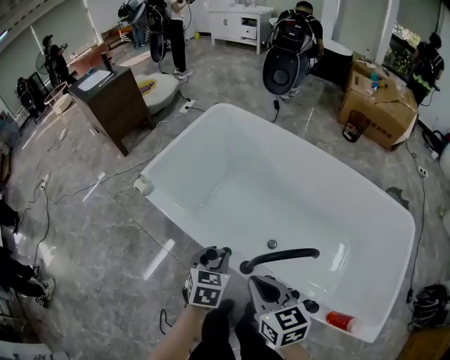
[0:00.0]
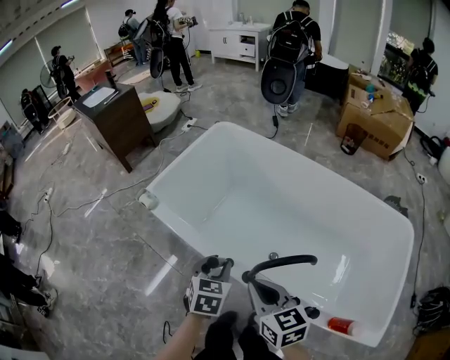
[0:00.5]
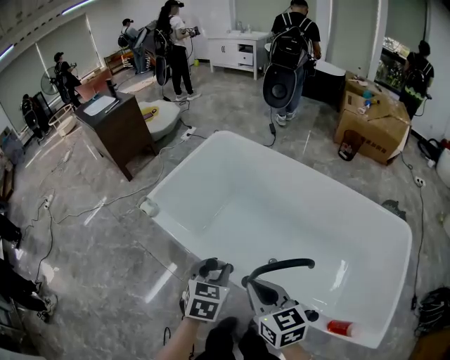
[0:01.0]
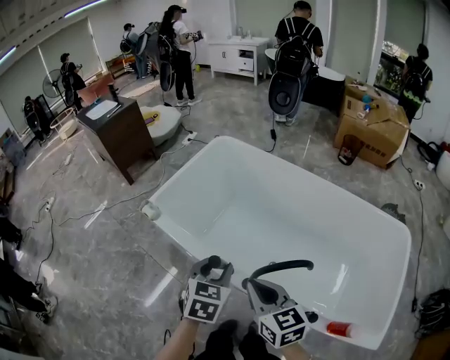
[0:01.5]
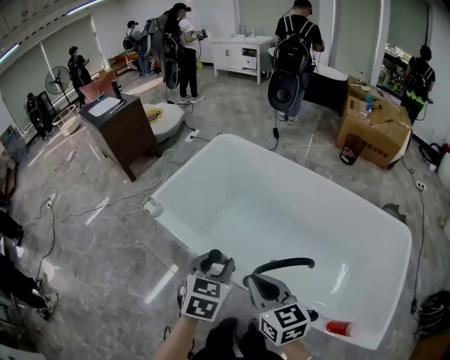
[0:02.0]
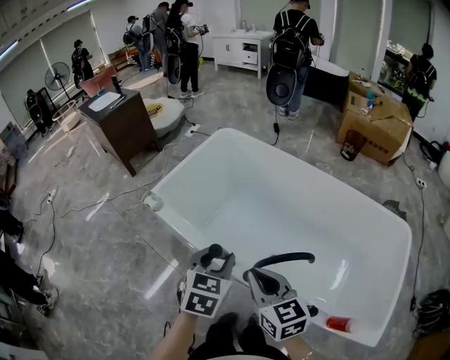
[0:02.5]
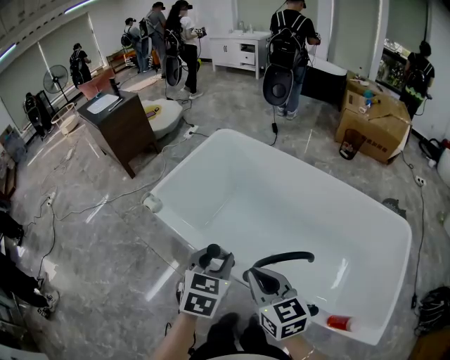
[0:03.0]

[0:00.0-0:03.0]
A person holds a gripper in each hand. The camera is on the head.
0:00.0 to 0:01.5: The right gripper goes roughly 10 cm upward. Meanwhile the left gripper shifts roughly 15 cm upward and backward.
0:01.5 to 0:03.0: The grippers move only a little.

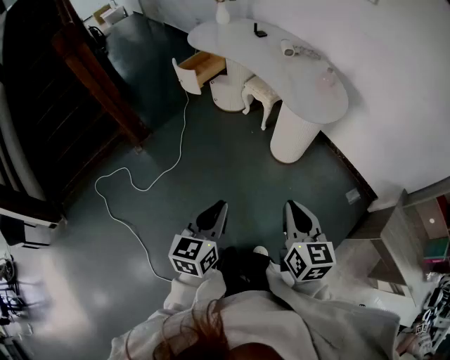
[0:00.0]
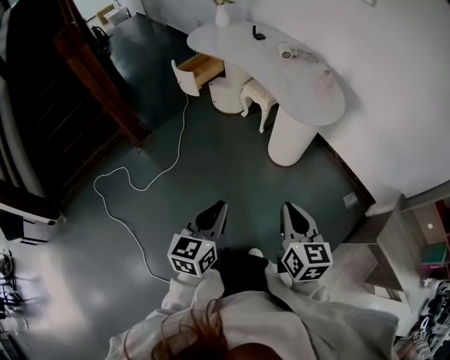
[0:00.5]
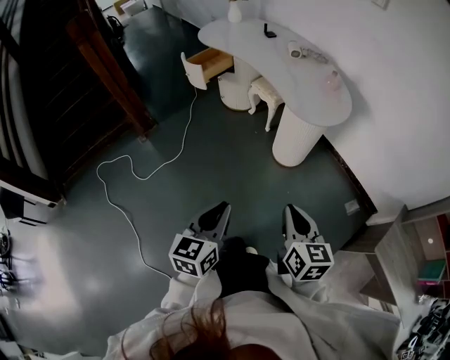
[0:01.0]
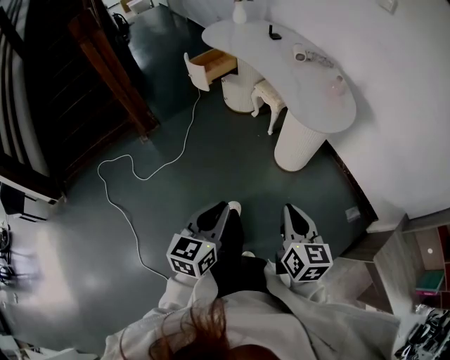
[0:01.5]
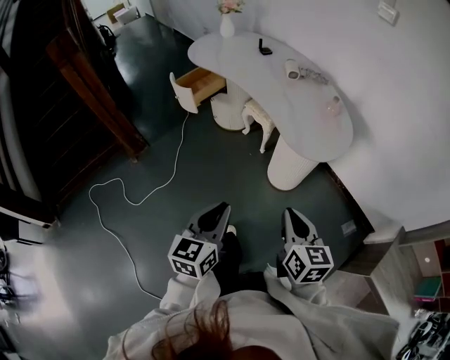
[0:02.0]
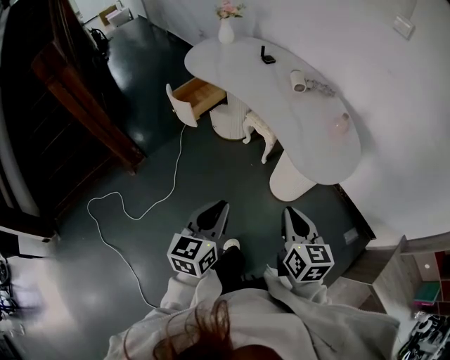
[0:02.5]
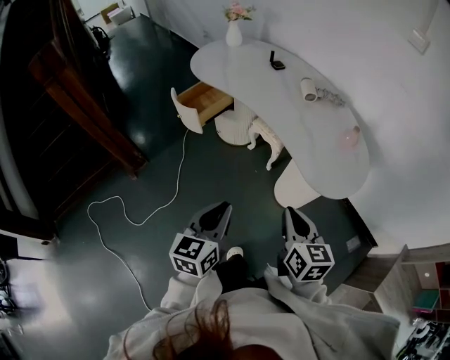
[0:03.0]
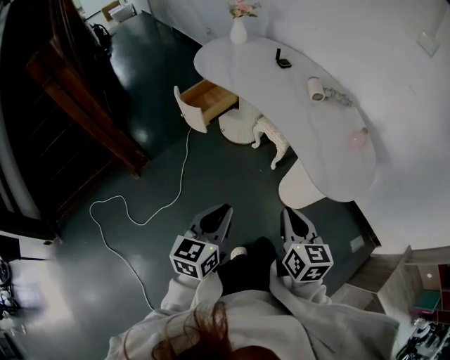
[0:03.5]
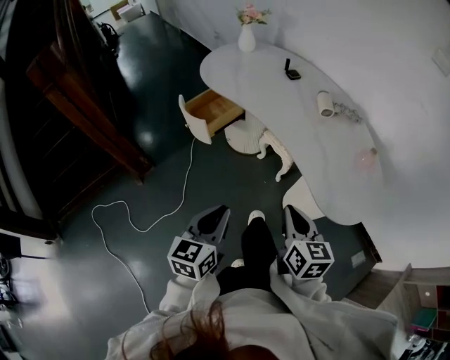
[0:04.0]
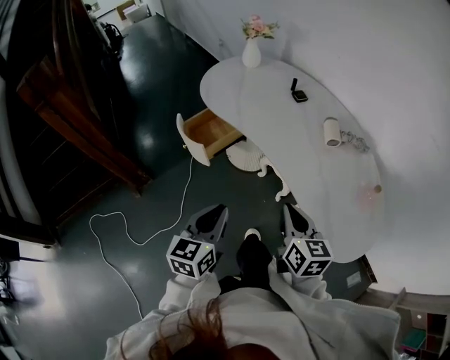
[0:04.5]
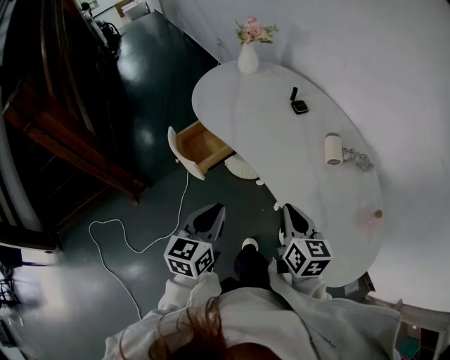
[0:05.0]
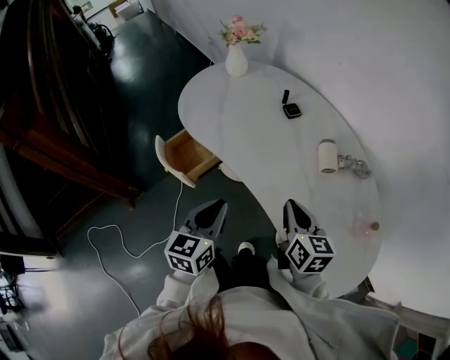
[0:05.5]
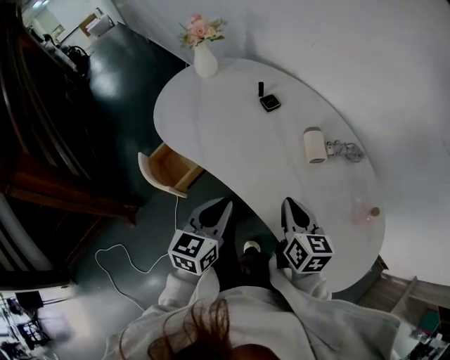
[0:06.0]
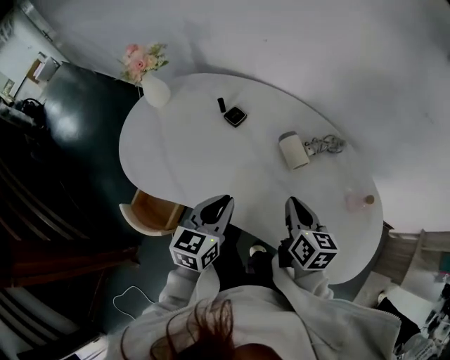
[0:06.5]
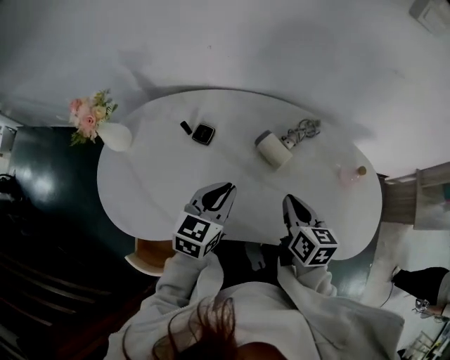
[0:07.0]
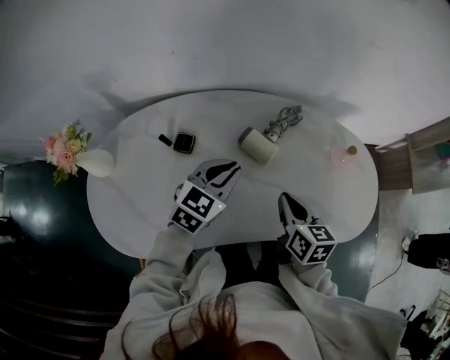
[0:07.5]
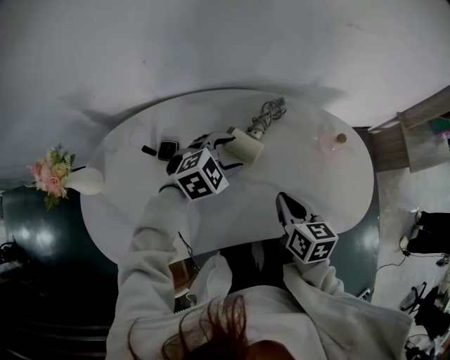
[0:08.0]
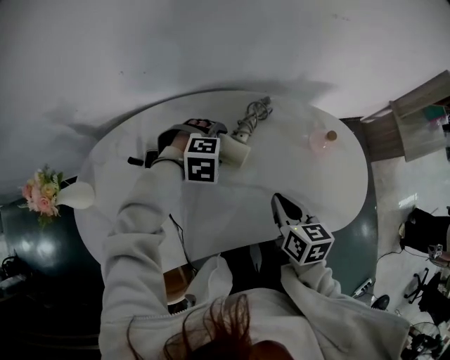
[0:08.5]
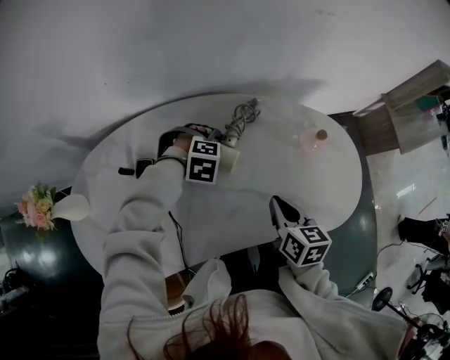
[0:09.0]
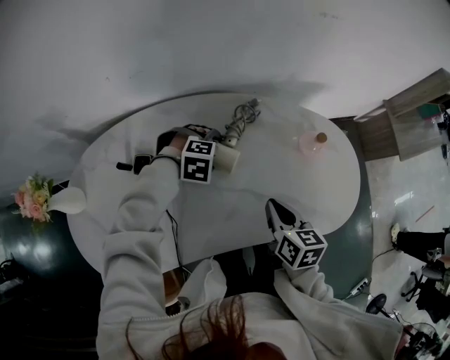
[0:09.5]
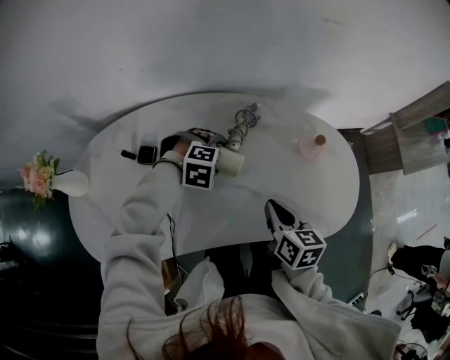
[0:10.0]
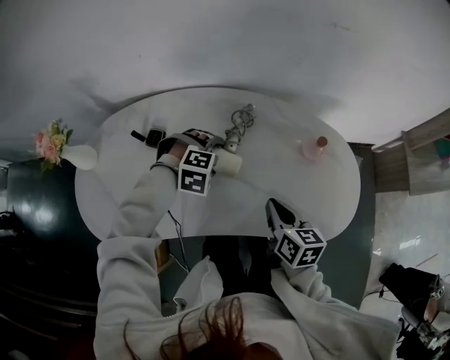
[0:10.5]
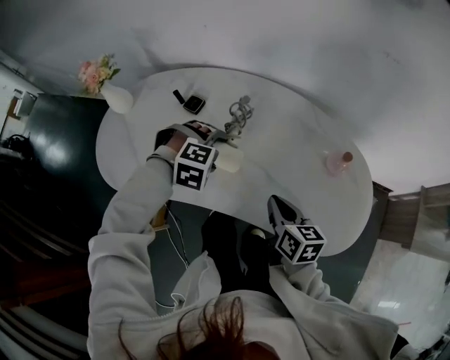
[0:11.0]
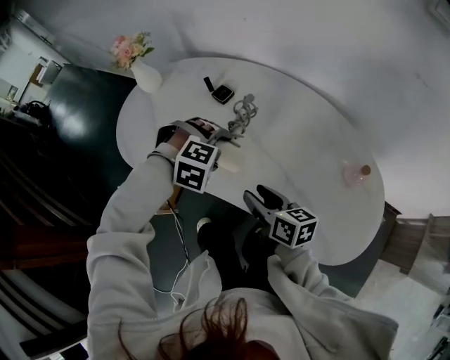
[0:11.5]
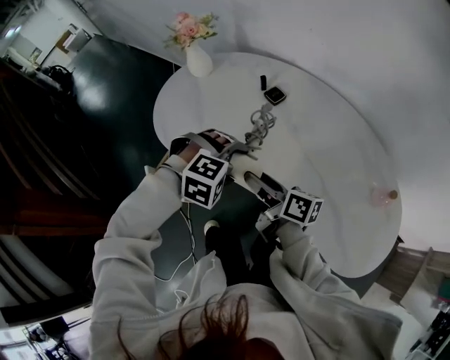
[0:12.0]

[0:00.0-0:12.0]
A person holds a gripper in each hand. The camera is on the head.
0:00.0 to 0:02.0: The left gripper heads forward and to the right, covering approximately 15 cm. The right gripper moves forward, some 15 cm.
0:02.0 to 0:04.0: Both grippers travel together forward and to the left, roughly 25 cm.
0:04.0 to 0:06.0: The two grippers go approximately 35 cm forward.
0:06.0 to 0:08.0: The left gripper ends up about 30 cm from where it was, rotates roughly 100 degrees, and opens its fingers. Meanwhile the right gripper ends up roughly 10 cm from where it was, and swivels roughly 50 degrees.
0:08.0 to 0:10.0: The left gripper travels downward by some 5 cm, and rotates roughly 40 degrees; the right gripper moves roughly 5 cm.
0:10.0 to 0:12.0: The right gripper shifts by some 25 cm, changes its angle by approximately 60 degrees, and opens up, while the left gripper shifts by roughly 30 cm, and changes its angle by approximately 40 degrees.

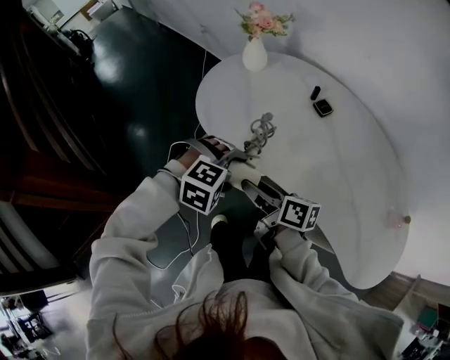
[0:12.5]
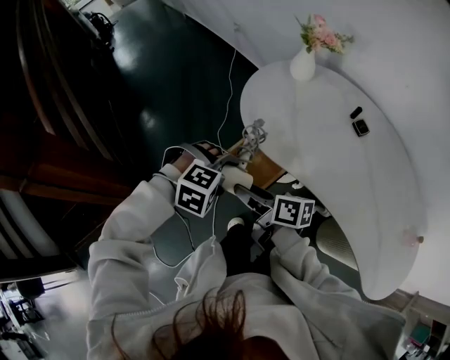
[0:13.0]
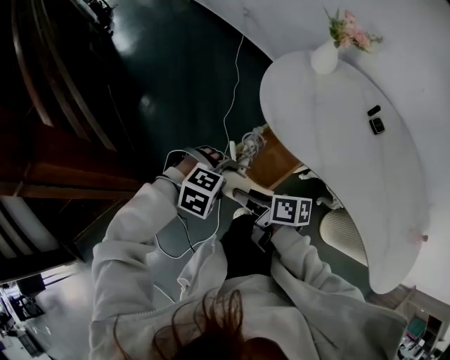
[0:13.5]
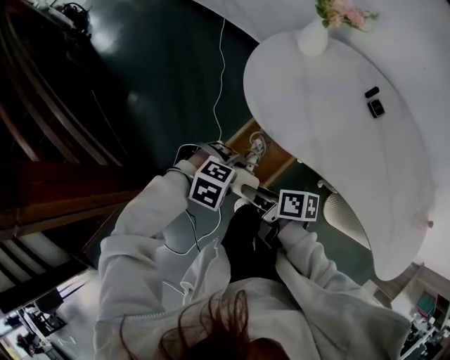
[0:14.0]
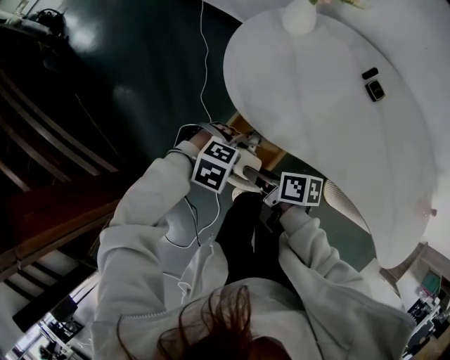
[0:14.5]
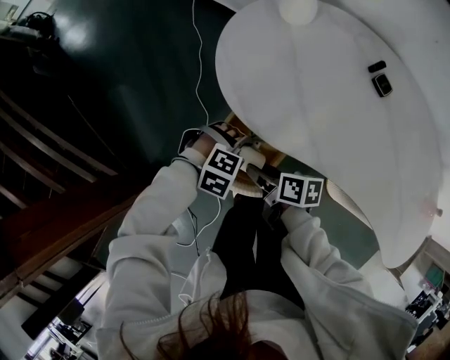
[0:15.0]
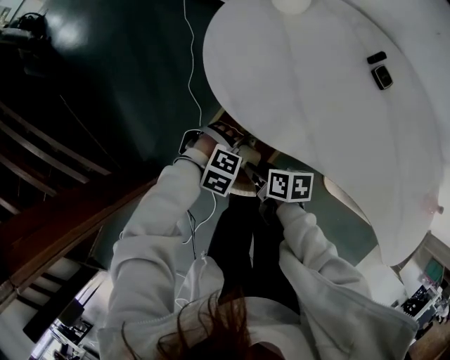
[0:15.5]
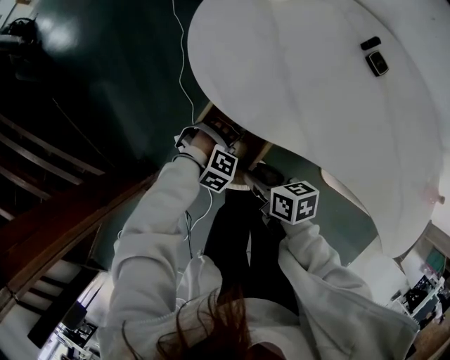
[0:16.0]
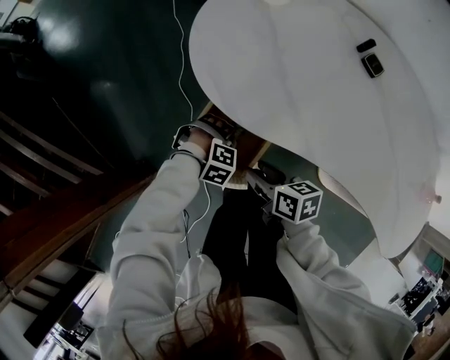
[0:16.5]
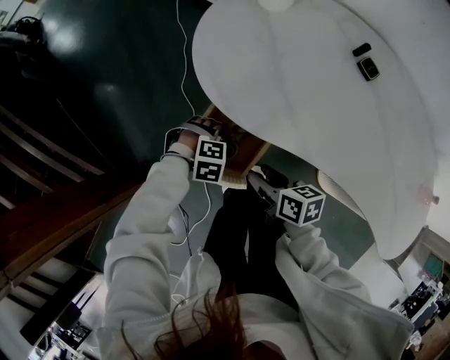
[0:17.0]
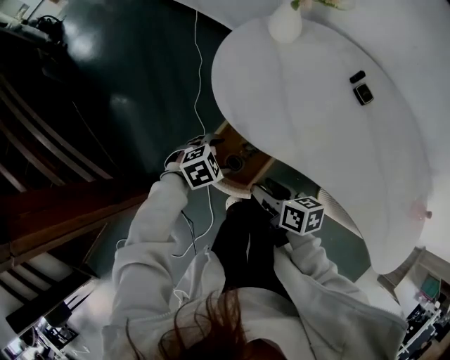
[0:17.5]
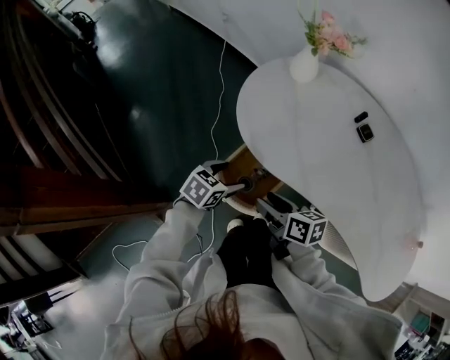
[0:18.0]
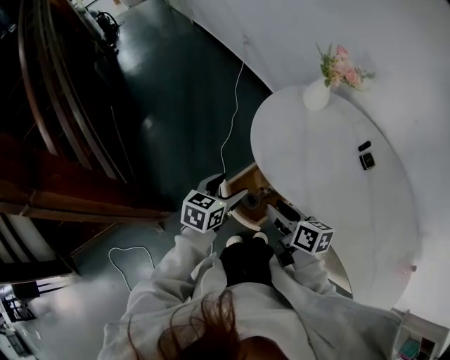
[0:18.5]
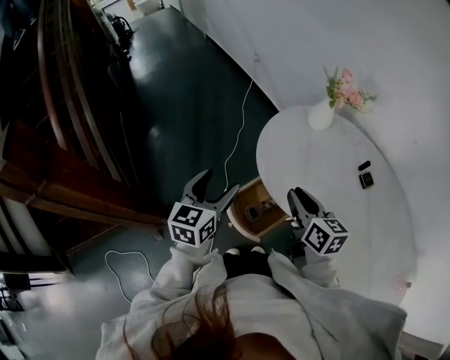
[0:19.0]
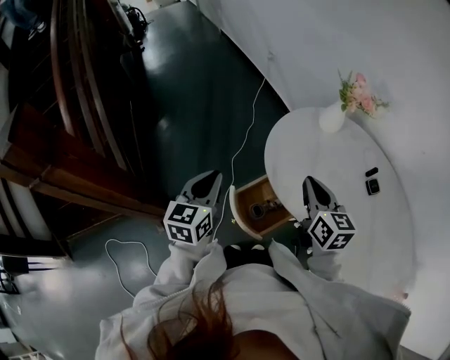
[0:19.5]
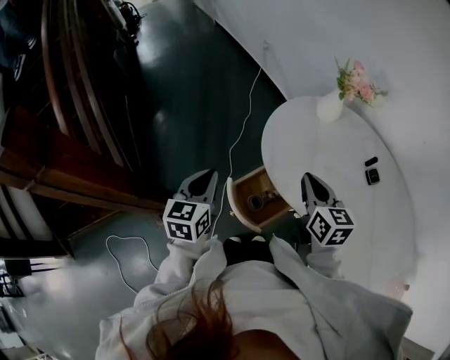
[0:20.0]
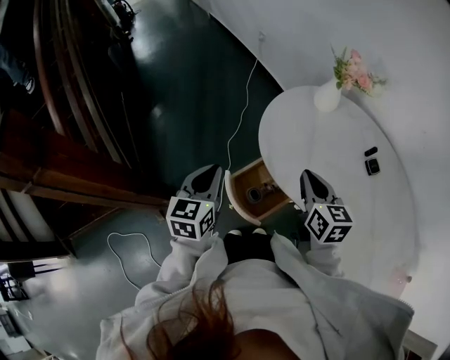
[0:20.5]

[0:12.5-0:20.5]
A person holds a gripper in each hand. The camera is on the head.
0:12.5 to 0:14.5: The right gripper moves some 20 cm, and rotates about 30 degrees; the left gripper shifts by approximately 20 cm, and swivels roughly 20 degrees.
0:14.5 to 0:16.5: The right gripper shifts by approximately 10 cm, and turns by some 20 degrees; the left gripper goes about 15 cm downward.
0:16.5 to 0:18.5: The right gripper heads upward, covering about 15 cm, while the left gripper is displaced upward by about 25 cm, and twists approximately 100 degrees counterclockwise, seen from behind.
0:18.5 to 0:20.5: The left gripper moves upward and to the left, about 10 cm, rotates about 30 degrees, and closes up. Meanwhile the right gripper goes roughly 10 cm upward, forward and to the right, changes its angle by some 30 degrees, and closes its fingers.

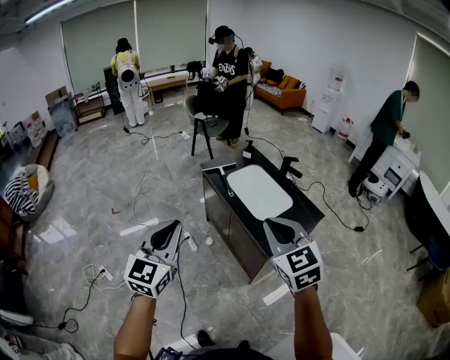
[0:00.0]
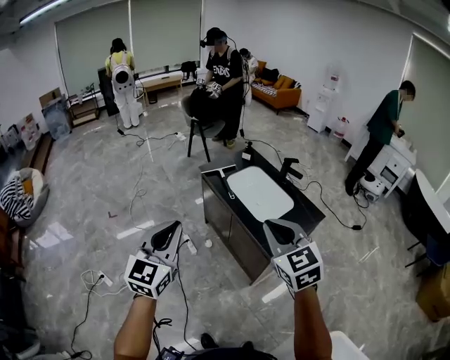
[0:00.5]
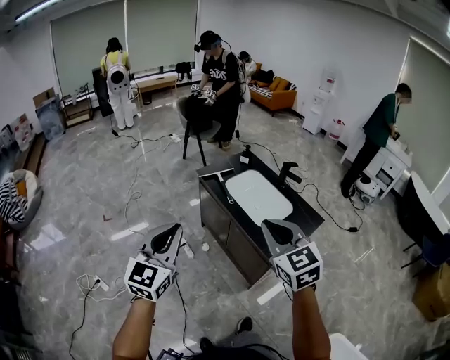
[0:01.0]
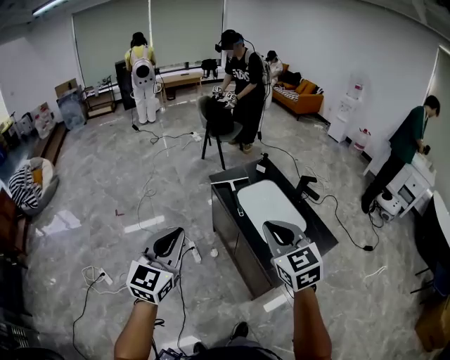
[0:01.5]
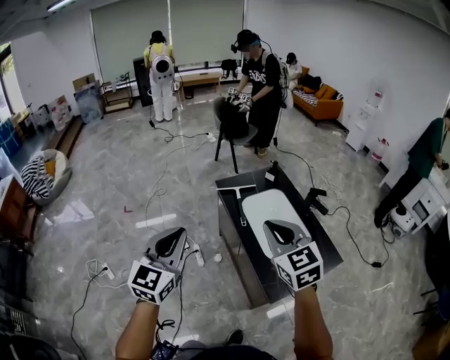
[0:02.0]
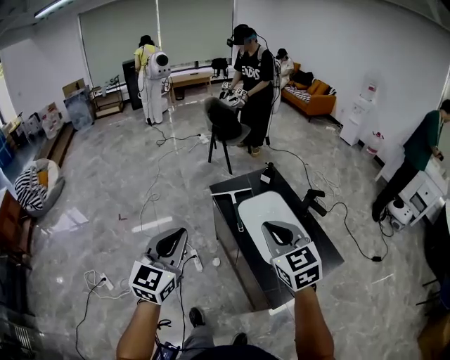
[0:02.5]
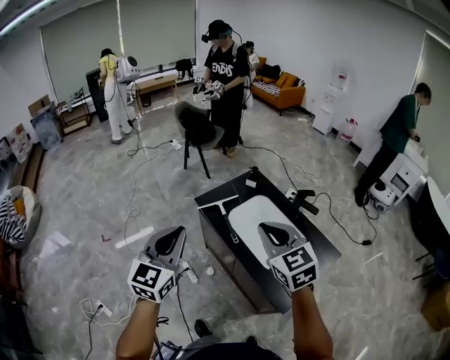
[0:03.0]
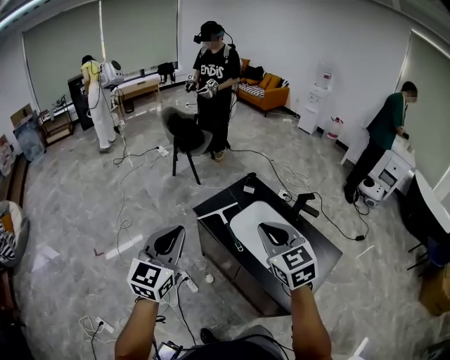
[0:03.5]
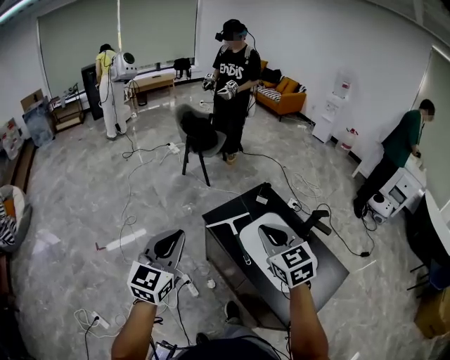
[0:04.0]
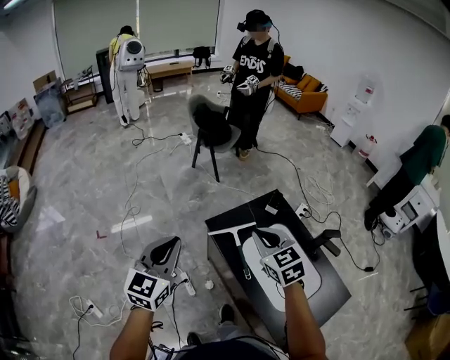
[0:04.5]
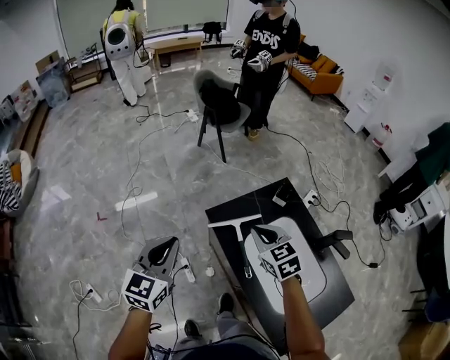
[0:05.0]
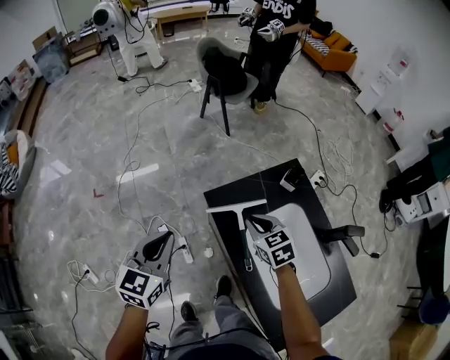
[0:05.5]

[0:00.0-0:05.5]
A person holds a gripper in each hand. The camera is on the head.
0:00.0 to 0:02.0: Both grippers travel together forward, some 25 cm.
0:02.0 to 0:03.5: The left gripper heads forward, covering some 25 cm, while the right gripper shifts roughly 20 cm forward and to the left.
0:03.5 to 0:05.5: Both grippers move downward and forward, roughly 40 cm. The left gripper swivels roughly 30 degrees. The right gripper rotates approximately 30 degrees.
